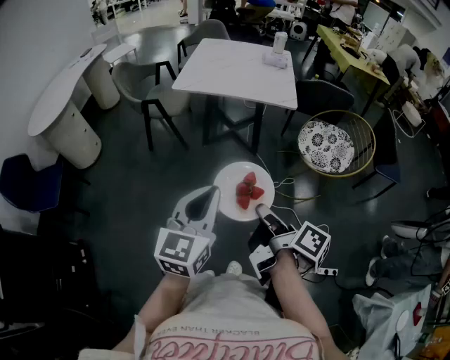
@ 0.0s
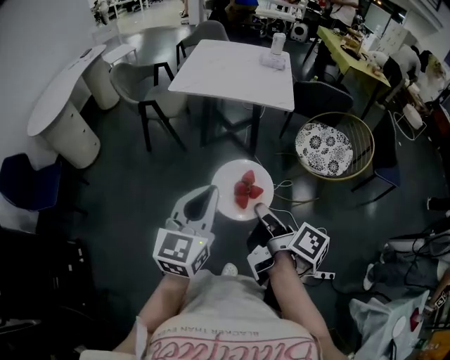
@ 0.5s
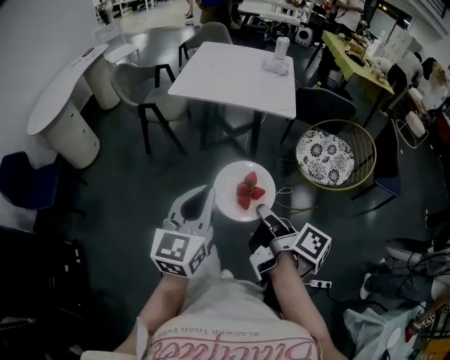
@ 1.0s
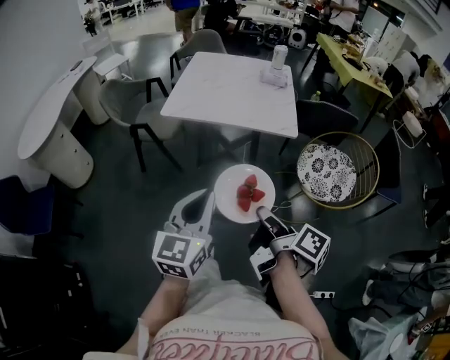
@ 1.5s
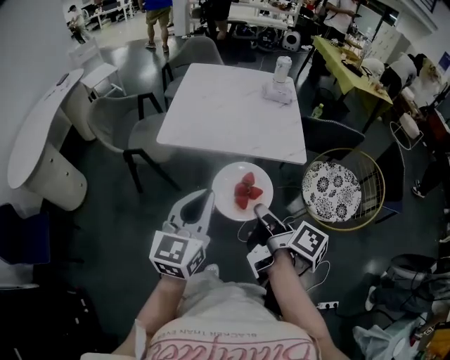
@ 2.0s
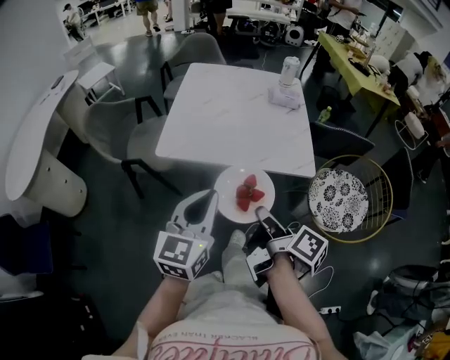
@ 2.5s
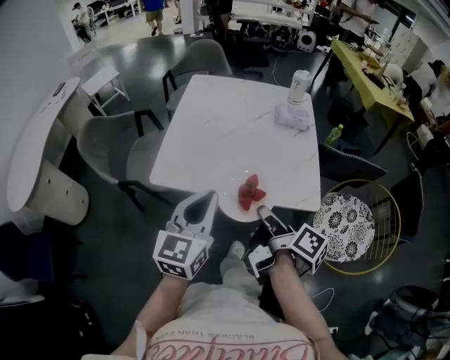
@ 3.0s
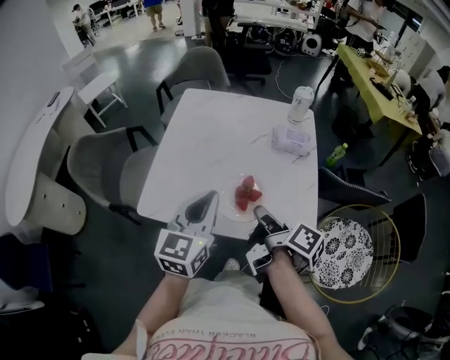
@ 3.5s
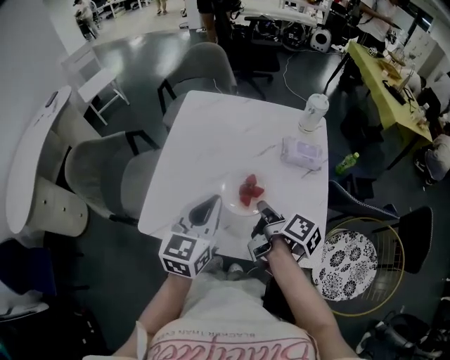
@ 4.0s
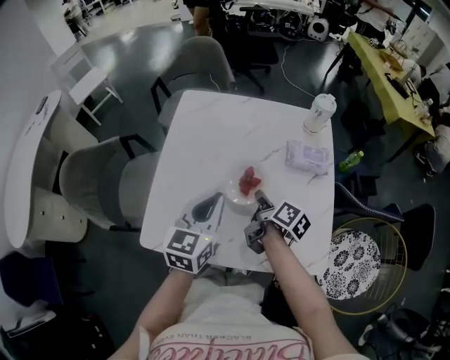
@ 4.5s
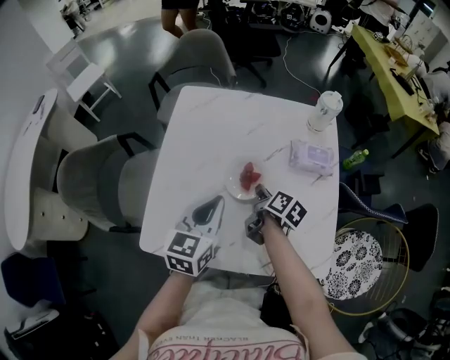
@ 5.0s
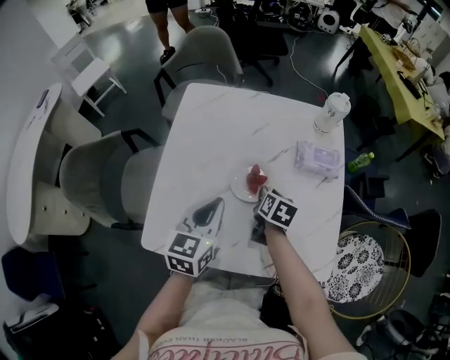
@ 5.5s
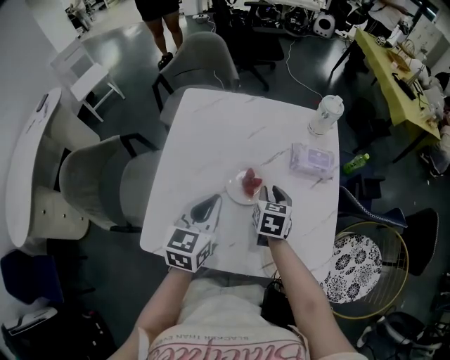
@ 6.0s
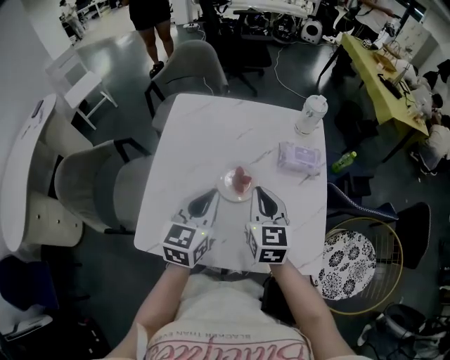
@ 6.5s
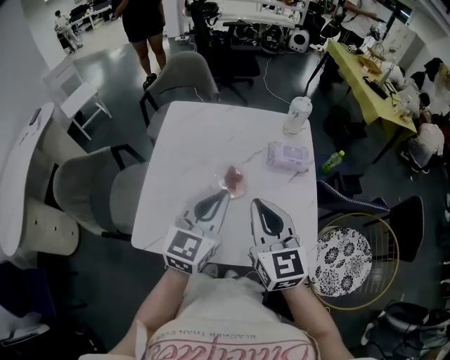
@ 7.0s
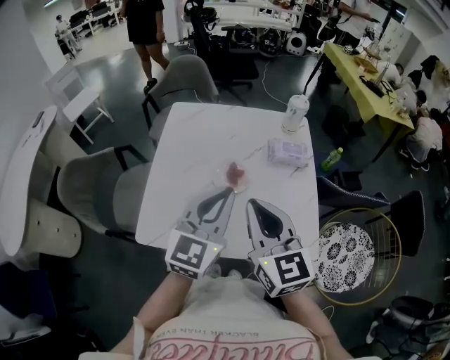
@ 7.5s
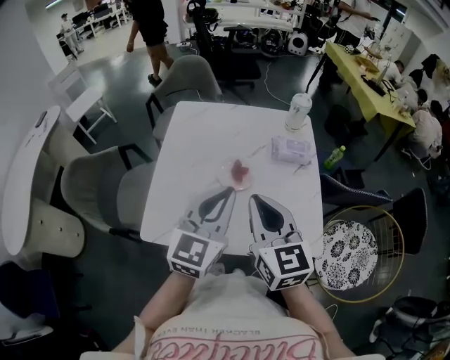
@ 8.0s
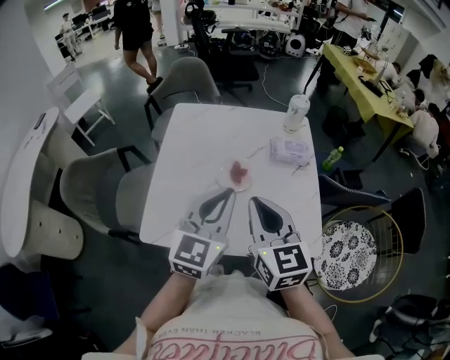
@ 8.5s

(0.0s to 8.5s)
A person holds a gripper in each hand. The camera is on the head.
0.0s - 2.0s: The grippers both shift forward by approximately 35 cm.
2.0s - 4.0s: Both grippers are carried forward, about 50 cm.
4.0s - 6.5s: Both grippers move forward, roughly 10 cm. The right gripper moves some 15 cm downward and comes back, and rotates around the line of its fingers by about 70 degrees, counterclockwise from behind.
6.5s - 8.5s: The left gripper goes approximately 15 cm upward and backward. The right gripper goes roughly 20 cm backward and upward.

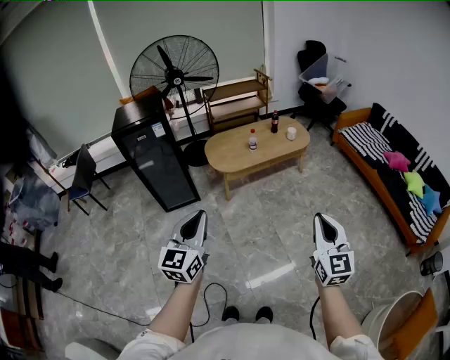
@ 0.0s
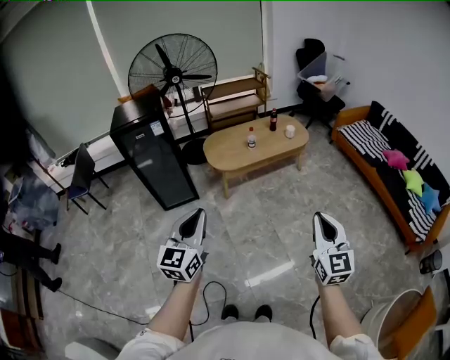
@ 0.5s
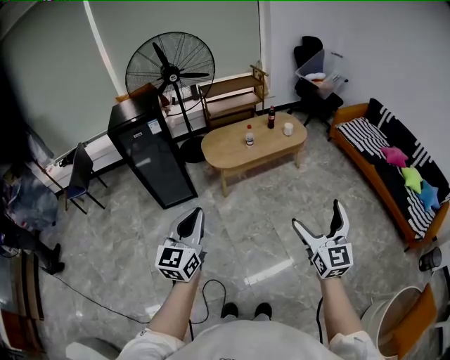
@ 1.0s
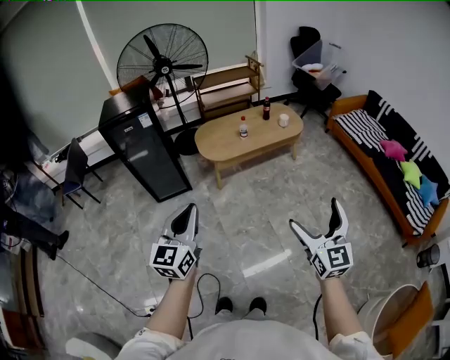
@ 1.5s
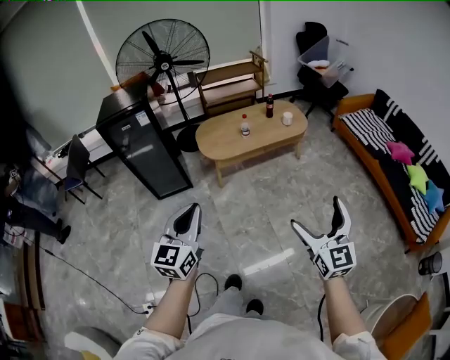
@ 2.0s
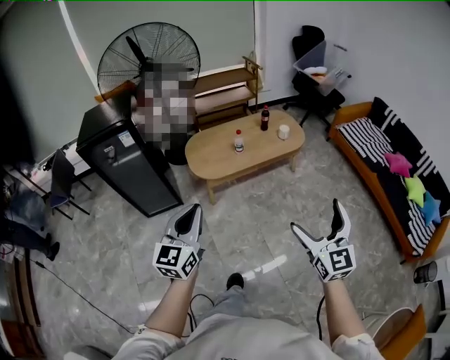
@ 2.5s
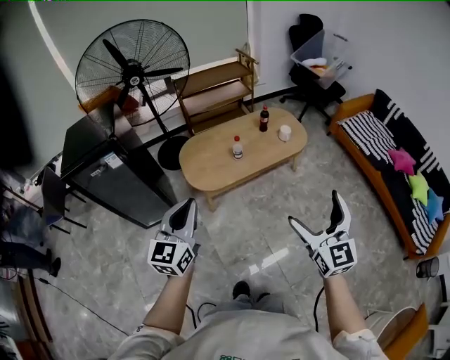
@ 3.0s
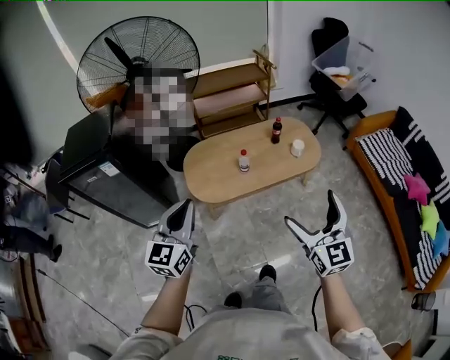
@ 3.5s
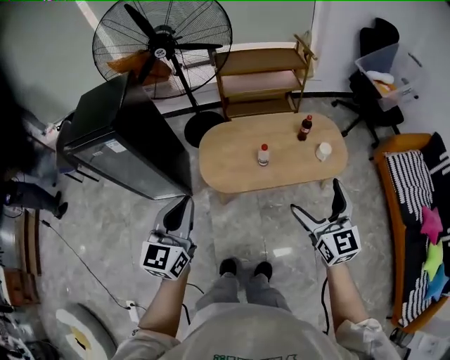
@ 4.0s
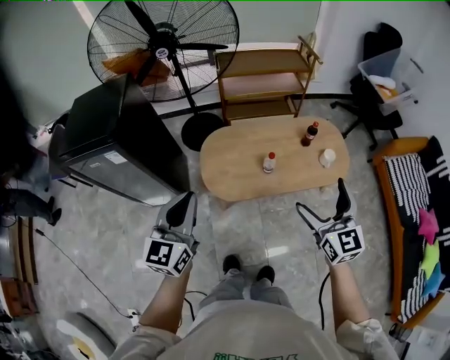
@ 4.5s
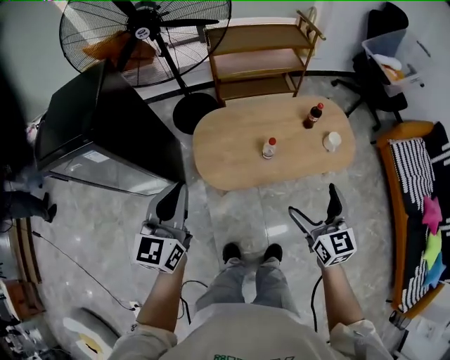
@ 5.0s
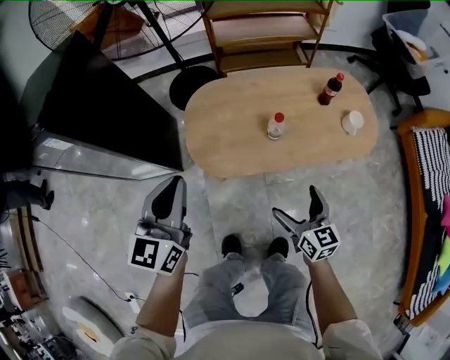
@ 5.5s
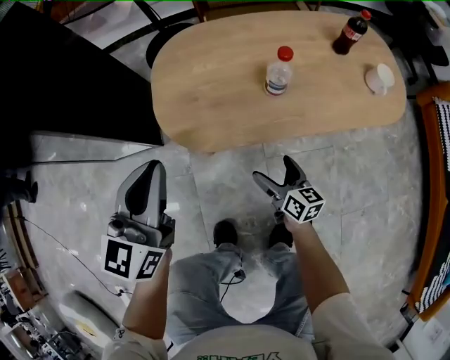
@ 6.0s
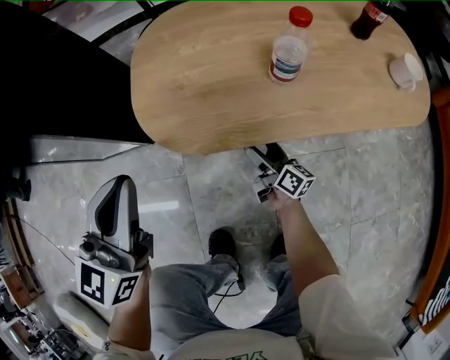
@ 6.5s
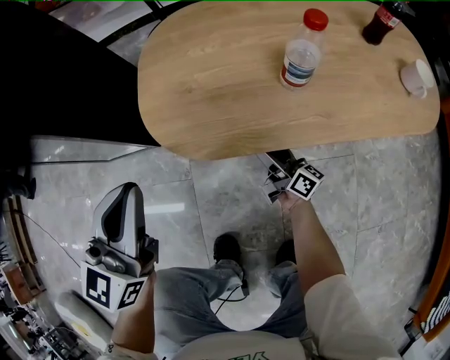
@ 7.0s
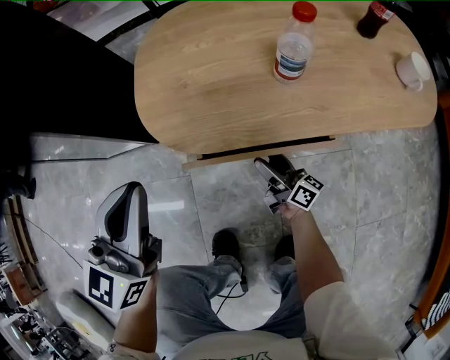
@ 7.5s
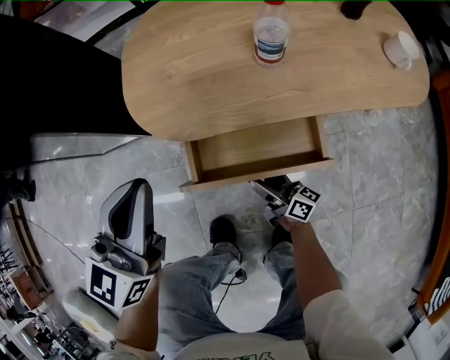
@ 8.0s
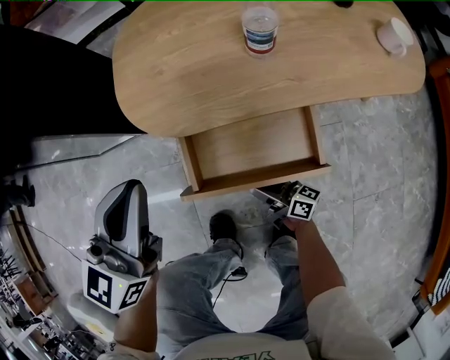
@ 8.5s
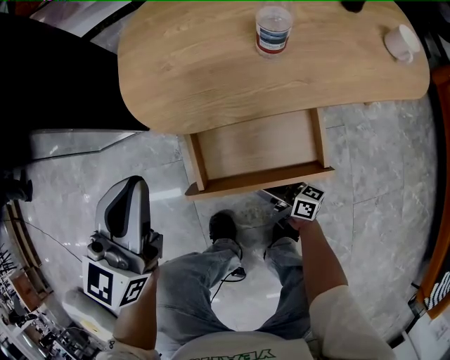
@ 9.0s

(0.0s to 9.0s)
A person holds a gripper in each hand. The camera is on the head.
0.0s - 2.0s: The left gripper travels to the right by some 5 cm. The right gripper travels forward and to the right by approximately 10 cm, and opens up.
2.0s - 4.5s: Both grippers are carried forward, roughly 60 cm.
4.5s - 7.0s: The right gripper goes roughly 70 cm downward, and rolls clockwise, seen from behind, by approximately 60 degrees; the left gripper heads downward, covering some 40 cm.
7.0s - 9.0s: The right gripper travels backward by approximately 20 cm. Meanwhile the left gripper changes place by some 5 cm.

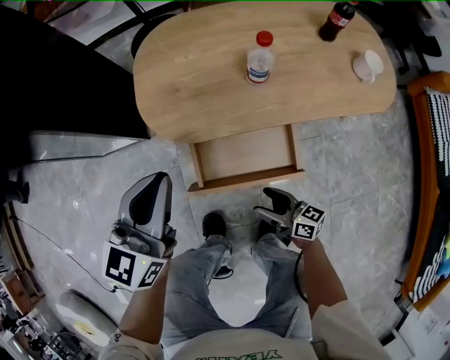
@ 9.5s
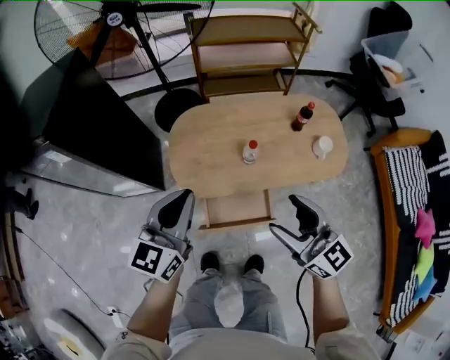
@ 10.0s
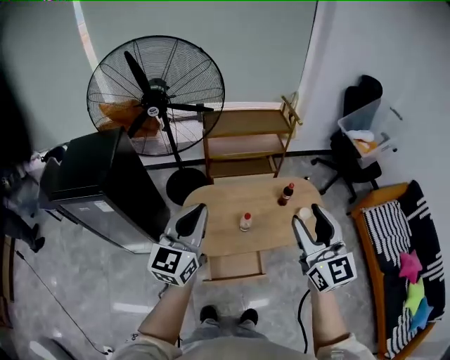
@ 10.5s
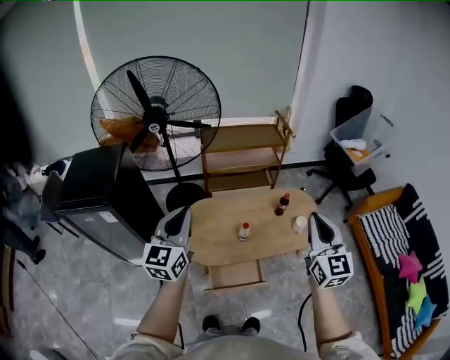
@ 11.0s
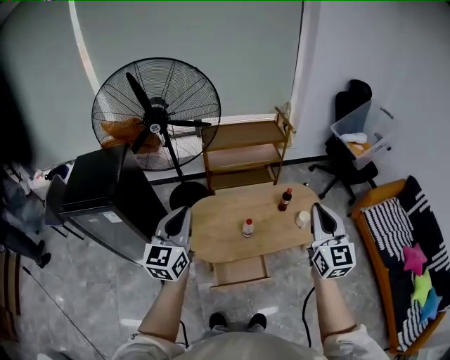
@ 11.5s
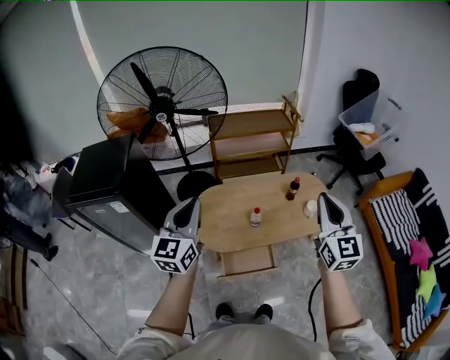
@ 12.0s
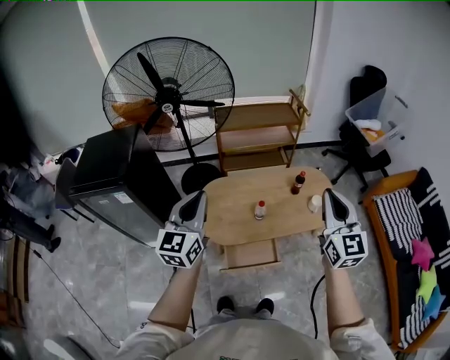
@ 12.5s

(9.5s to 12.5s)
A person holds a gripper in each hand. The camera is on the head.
9.5s - 11.0s: The left gripper heads upward, covering approximately 50 cm; the right gripper heads upward, covering roughly 80 cm, rotates about 70 degrees, and closes up.
11.0s - 12.5s: The grippers move only a little.

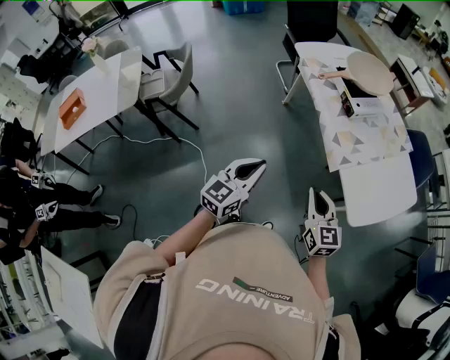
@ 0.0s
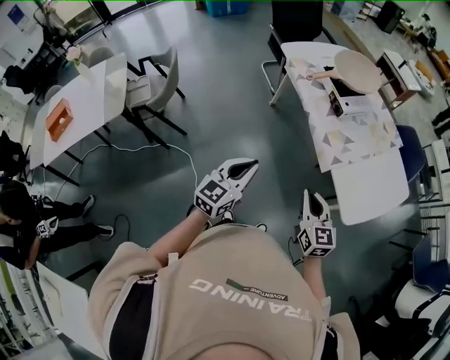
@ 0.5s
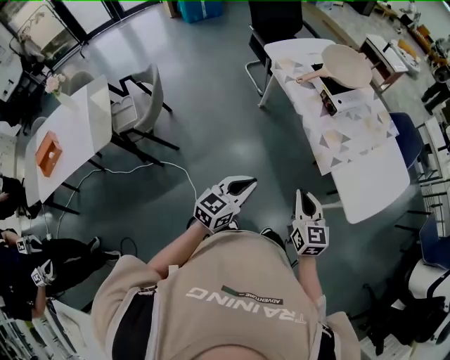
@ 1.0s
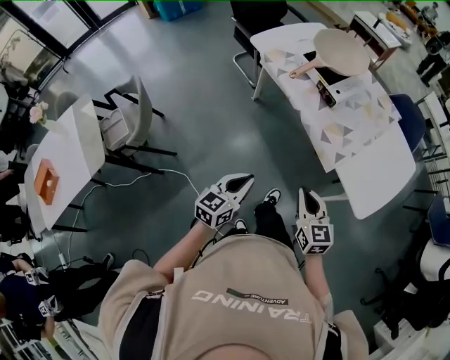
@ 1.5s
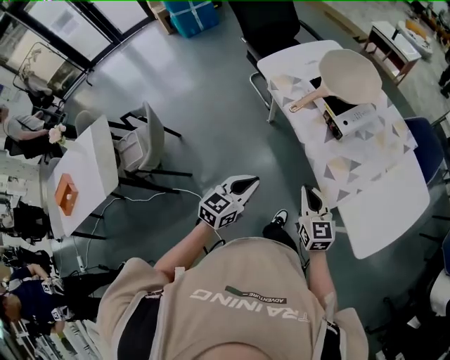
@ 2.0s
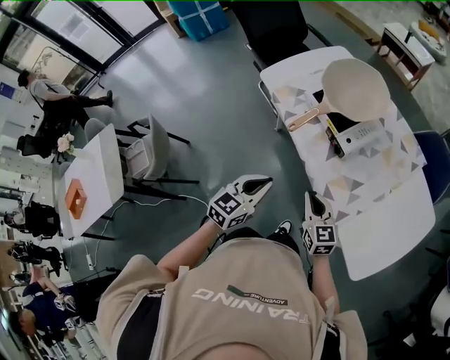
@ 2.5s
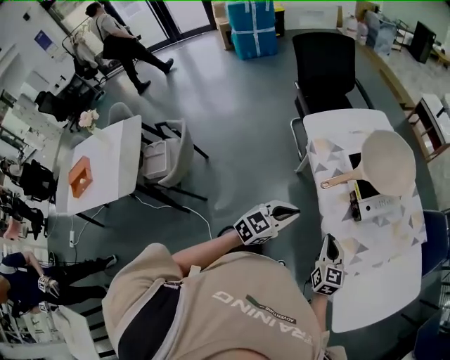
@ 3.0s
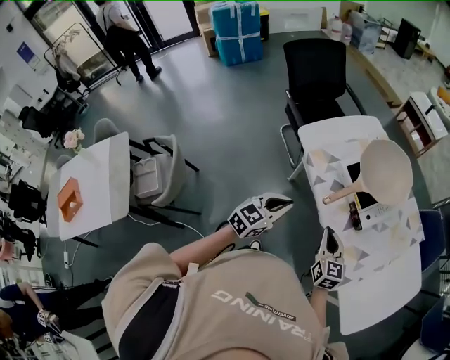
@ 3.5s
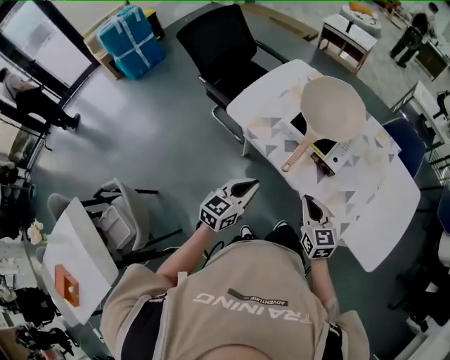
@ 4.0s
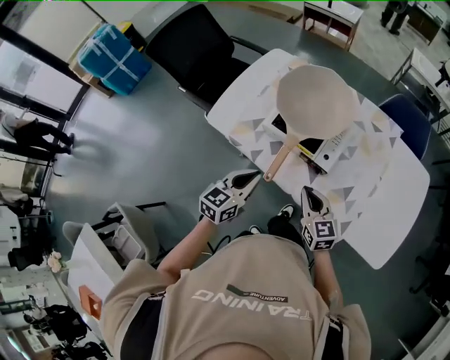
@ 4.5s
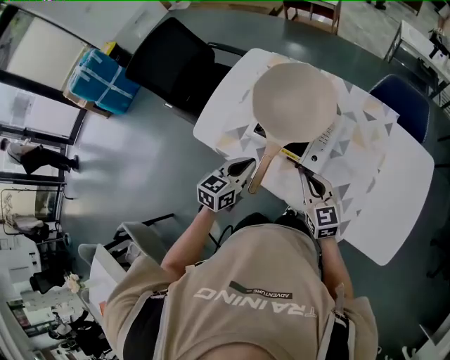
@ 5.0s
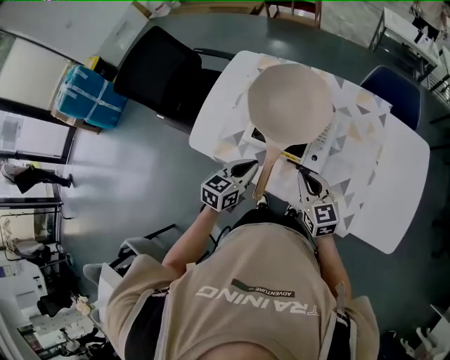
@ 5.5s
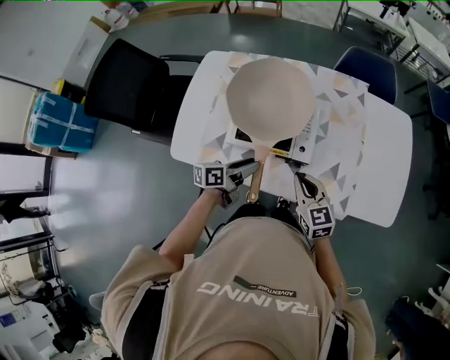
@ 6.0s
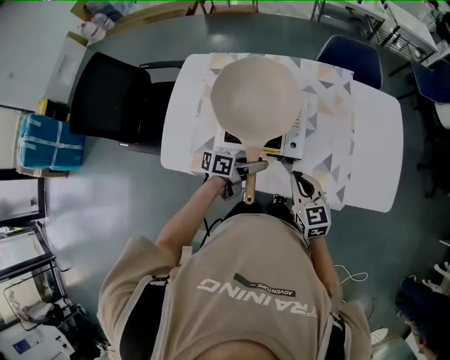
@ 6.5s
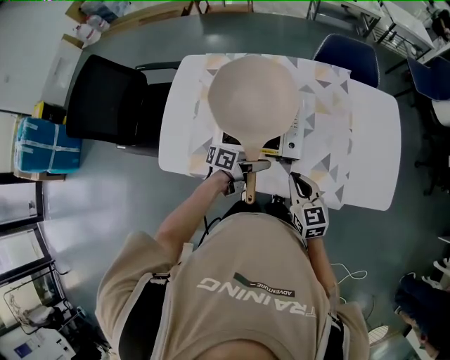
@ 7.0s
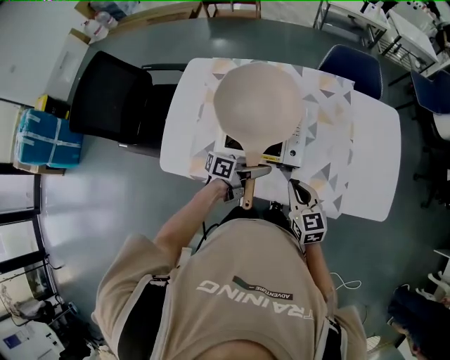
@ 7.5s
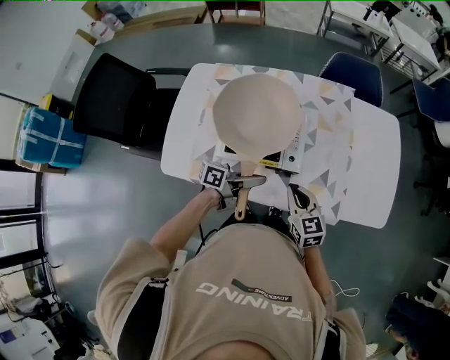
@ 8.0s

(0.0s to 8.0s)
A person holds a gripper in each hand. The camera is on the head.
0.0s - 2.0s: Both grippers travel together forward, about 25 cm. The left gripper changes its angle by about 20 degrees.
2.0s - 4.0s: The right gripper heads forward and to the left, covering roughly 20 cm. Meanwhile the left gripper goes roughly 25 cm forward.
4.0s - 6.0s: The left gripper changes place by about 25 cm, turns by roughly 50 degrees, and opens up; the right gripper ends up roughly 15 cm from where it was, and turns by roughly 20 degrees.
6.0s - 8.0s: The left gripper is displaced to the right by roughly 5 cm, turns by approximately 30 degrees, and closes.
